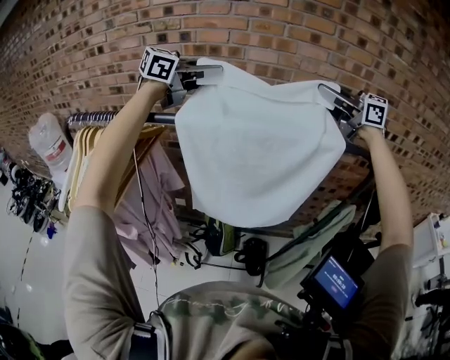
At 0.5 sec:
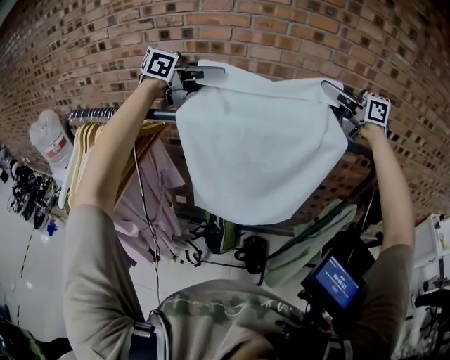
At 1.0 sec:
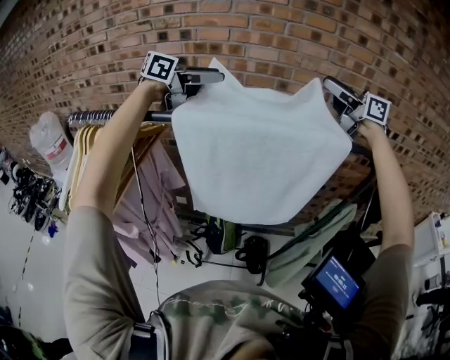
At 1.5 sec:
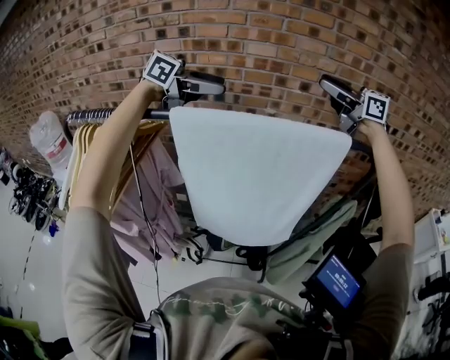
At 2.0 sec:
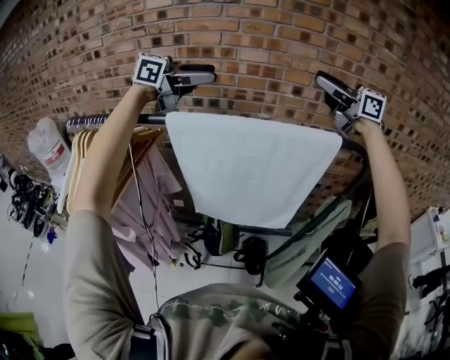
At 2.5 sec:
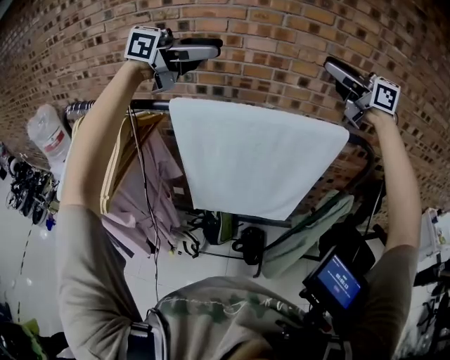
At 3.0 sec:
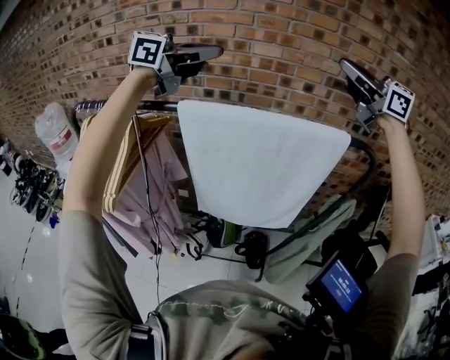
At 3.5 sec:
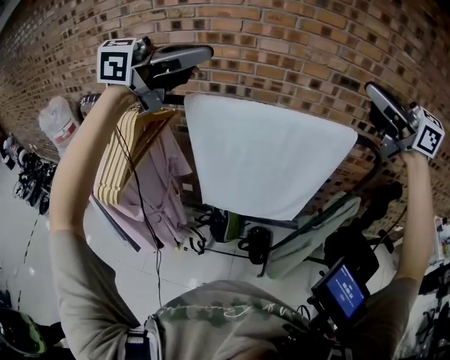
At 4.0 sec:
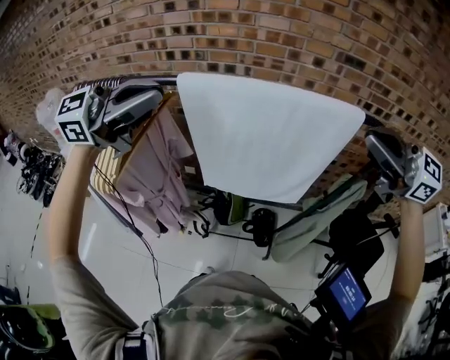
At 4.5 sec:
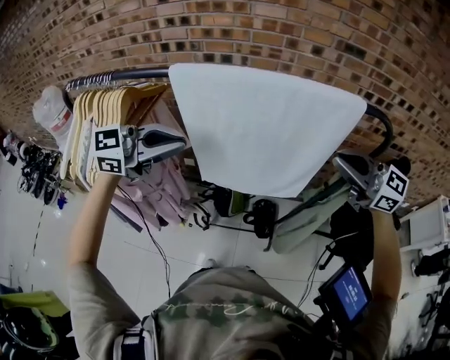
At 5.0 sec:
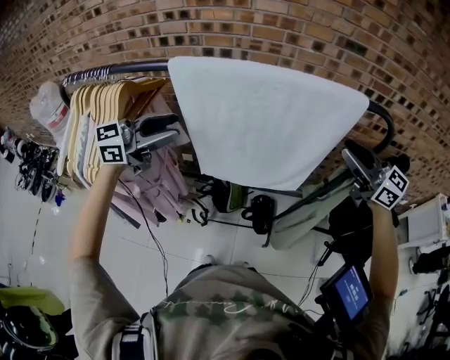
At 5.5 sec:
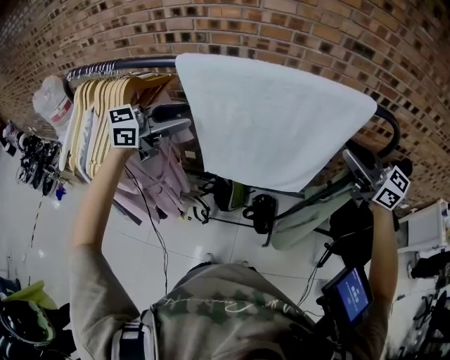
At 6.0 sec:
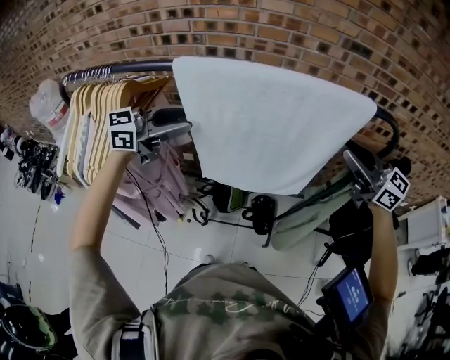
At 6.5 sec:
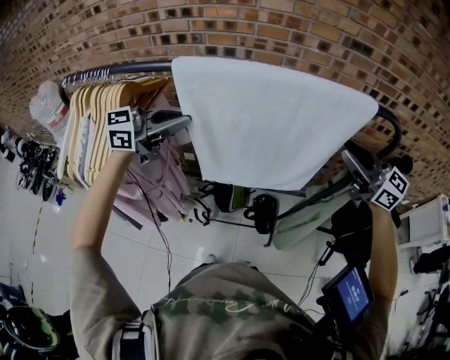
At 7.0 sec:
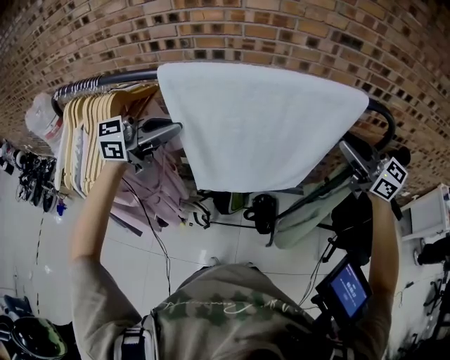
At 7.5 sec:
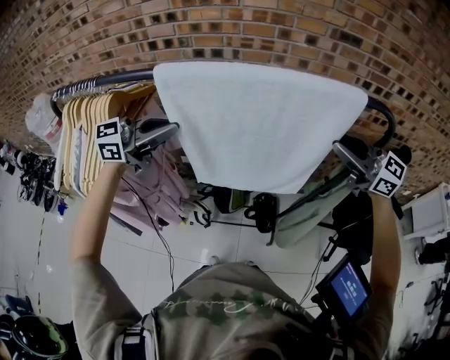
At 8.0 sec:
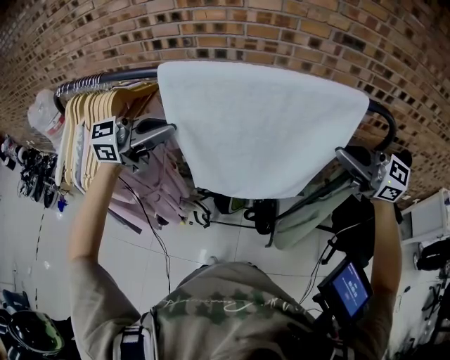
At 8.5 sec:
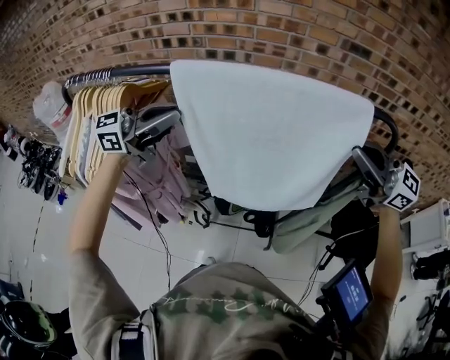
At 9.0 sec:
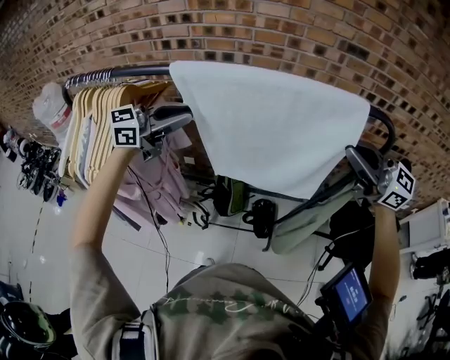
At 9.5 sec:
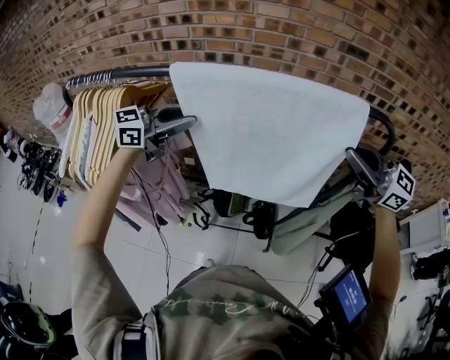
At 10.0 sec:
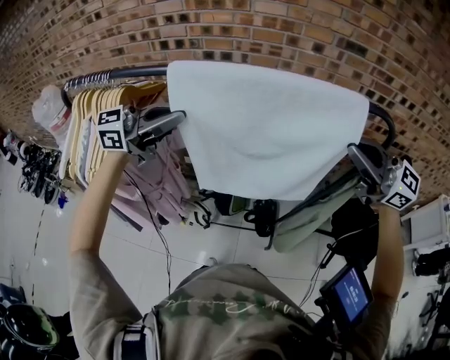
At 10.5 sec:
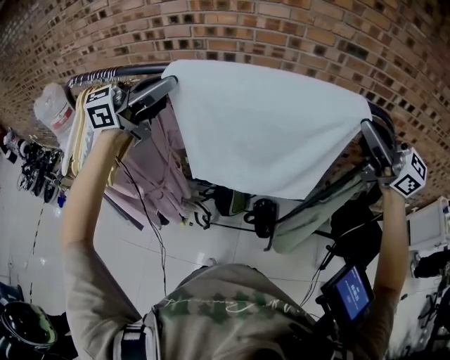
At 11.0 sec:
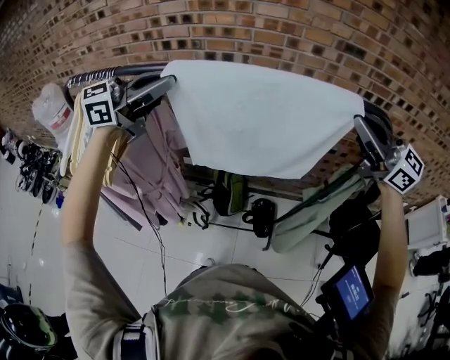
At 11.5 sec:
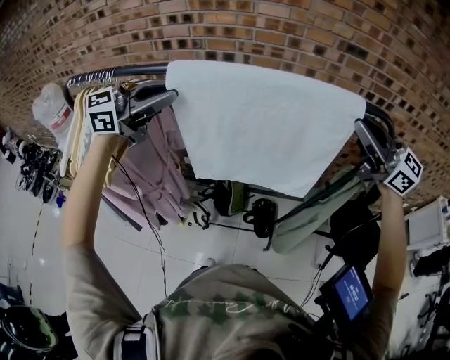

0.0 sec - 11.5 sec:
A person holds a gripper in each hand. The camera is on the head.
0.0 sec - 2.0 sec: The right gripper opens up; the left gripper opens its fingers.
2.0 sec - 4.0 sec: The left gripper goes upward and returns, about 5 cm each way, and closes, while the right gripper shifts by roughly 25 cm, and closes its fingers.
4.0 sec - 6.0 sec: The grippers both shift downward by roughly 15 cm. The left gripper opens its fingers.
6.0 sec - 7.5 sec: The left gripper closes.
7.5 sec - 9.5 sec: The right gripper changes place by roughly 5 cm.
9.5 sec - 11.5 sec: The left gripper is displaced upward by approximately 10 cm, while the right gripper ends up approximately 5 cm from where it was.

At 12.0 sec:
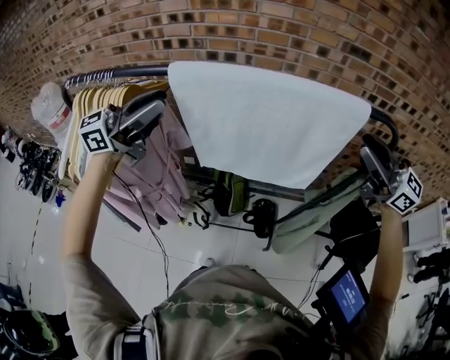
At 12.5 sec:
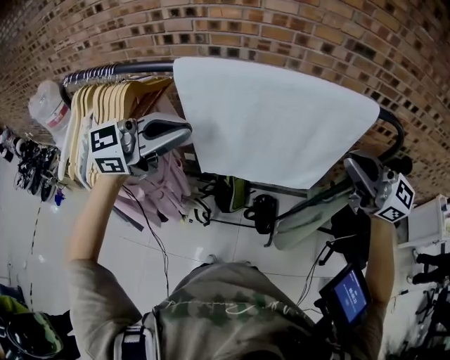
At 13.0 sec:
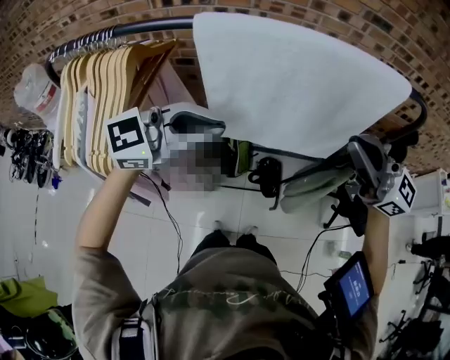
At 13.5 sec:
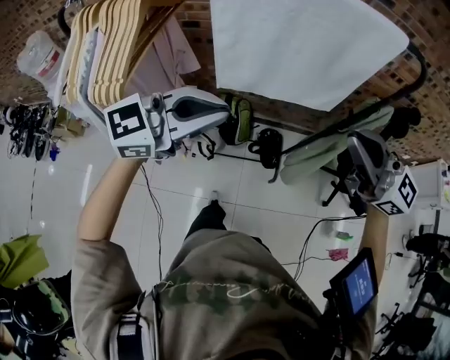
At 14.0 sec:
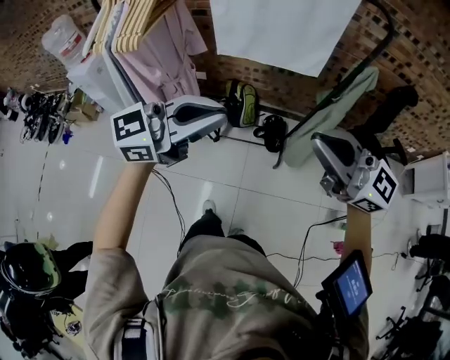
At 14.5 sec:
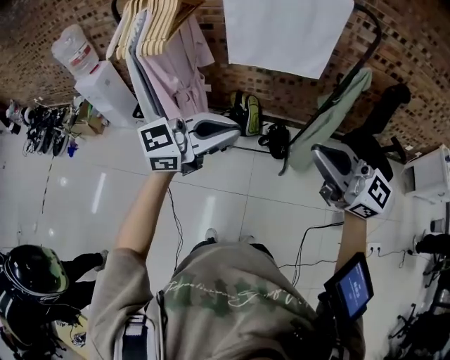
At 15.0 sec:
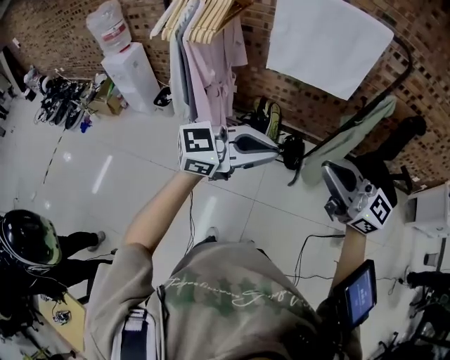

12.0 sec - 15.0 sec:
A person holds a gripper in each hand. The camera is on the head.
12.0 sec - 13.5 sec: The left gripper changes place by some 25 cm; the right gripper shifts by roughly 25 cm, and closes.
13.5 sec - 15.0 sec: The right gripper ends up roughly 30 cm from where it was. Meanwhile the left gripper changes place by approximately 30 cm.

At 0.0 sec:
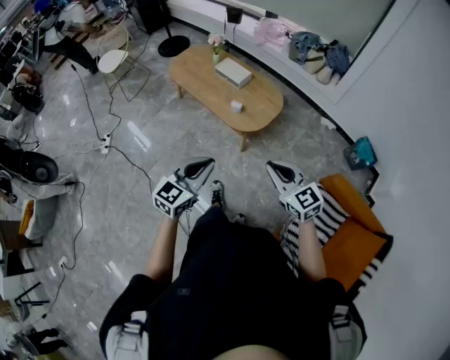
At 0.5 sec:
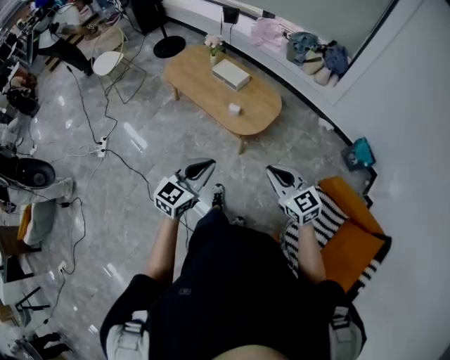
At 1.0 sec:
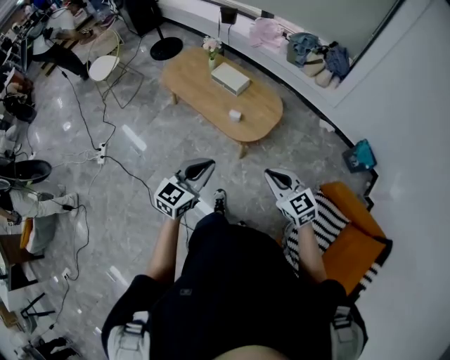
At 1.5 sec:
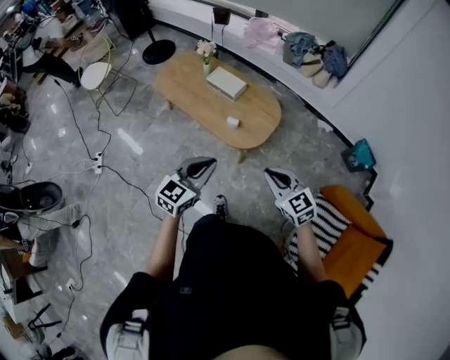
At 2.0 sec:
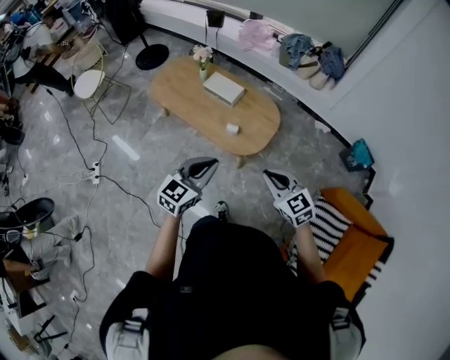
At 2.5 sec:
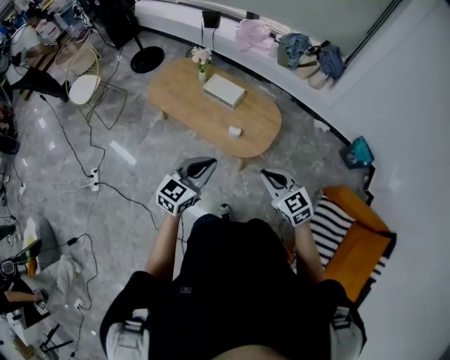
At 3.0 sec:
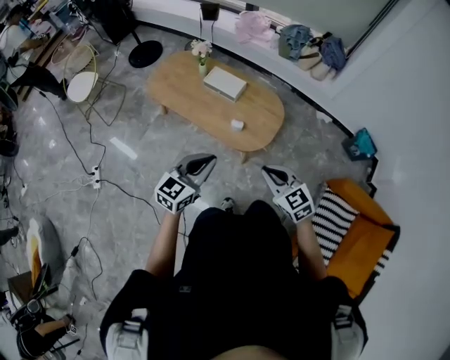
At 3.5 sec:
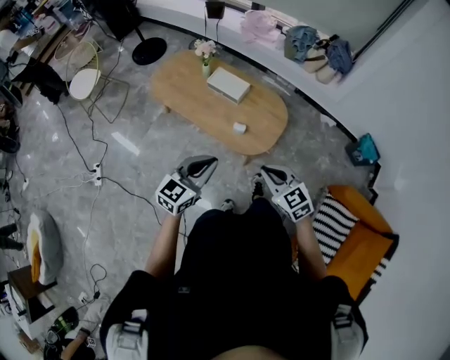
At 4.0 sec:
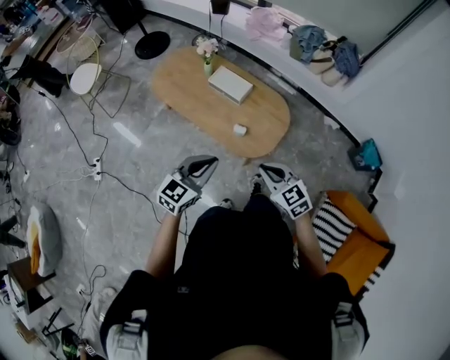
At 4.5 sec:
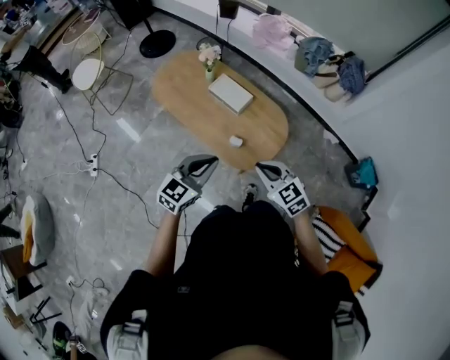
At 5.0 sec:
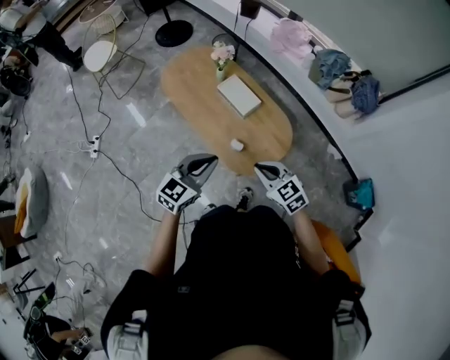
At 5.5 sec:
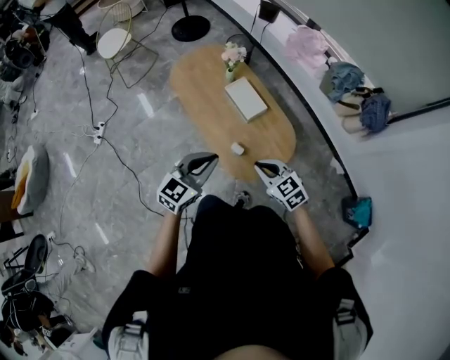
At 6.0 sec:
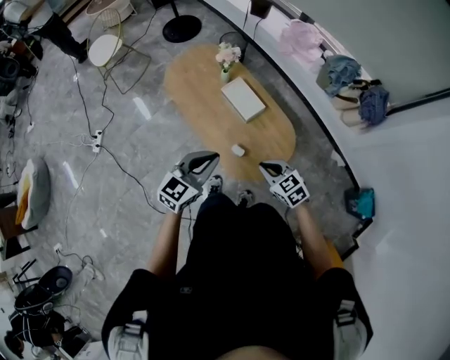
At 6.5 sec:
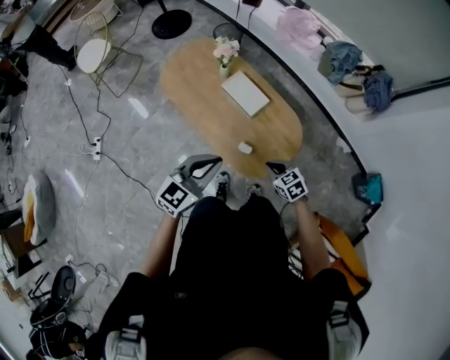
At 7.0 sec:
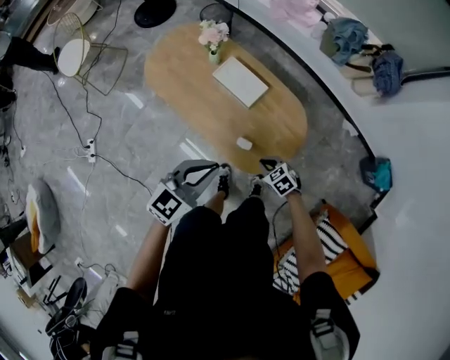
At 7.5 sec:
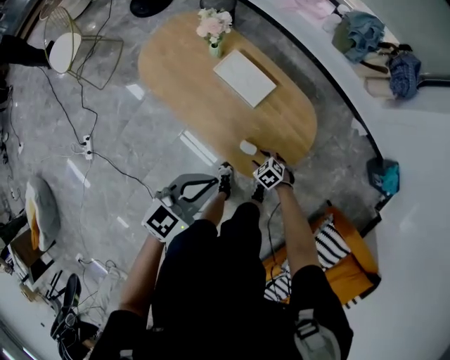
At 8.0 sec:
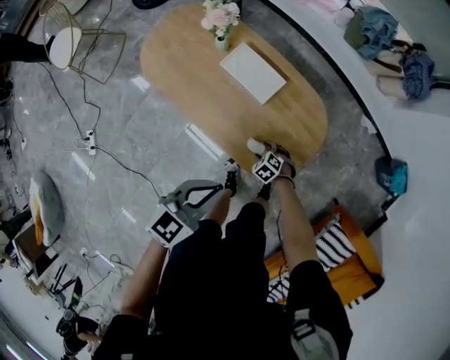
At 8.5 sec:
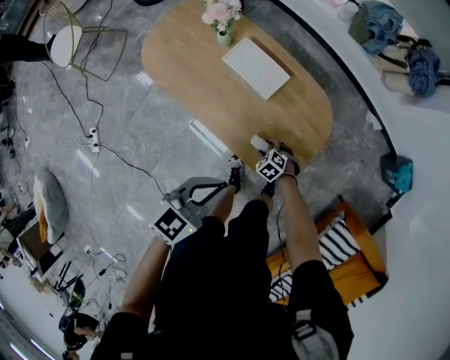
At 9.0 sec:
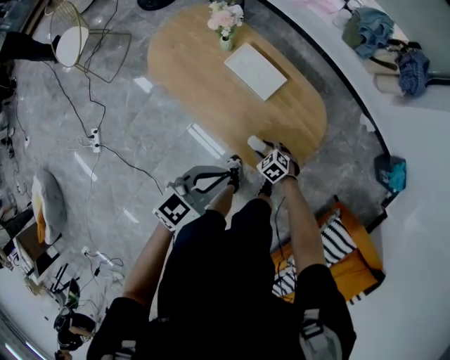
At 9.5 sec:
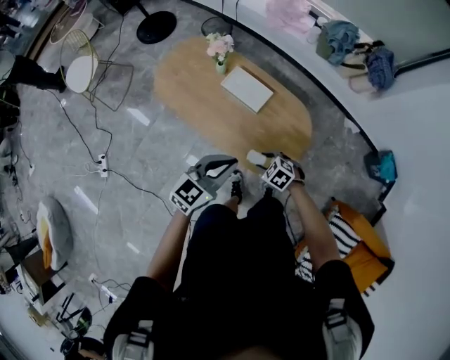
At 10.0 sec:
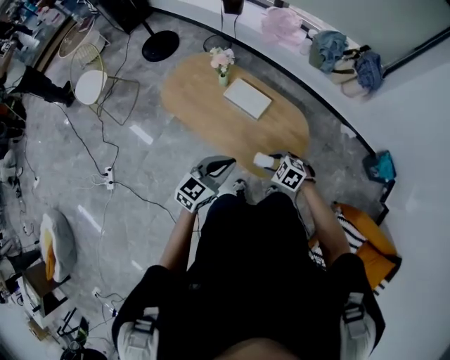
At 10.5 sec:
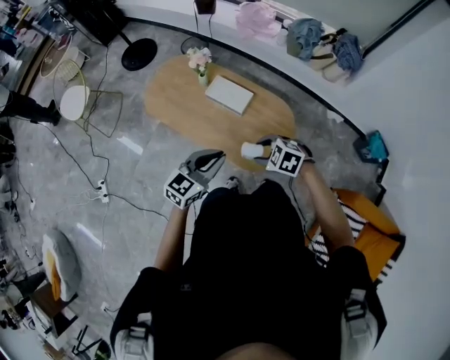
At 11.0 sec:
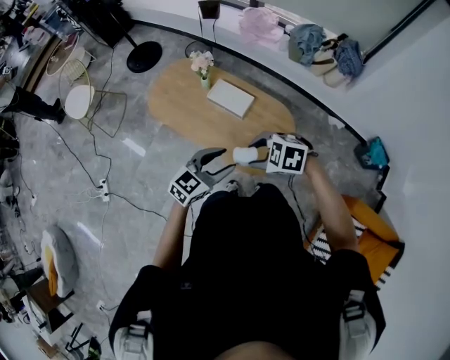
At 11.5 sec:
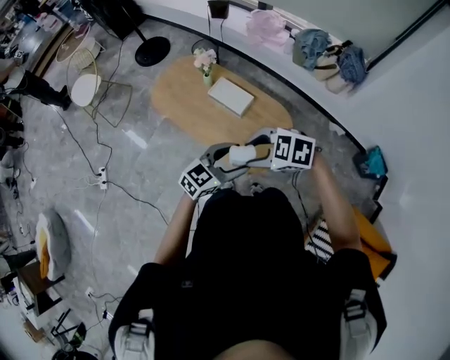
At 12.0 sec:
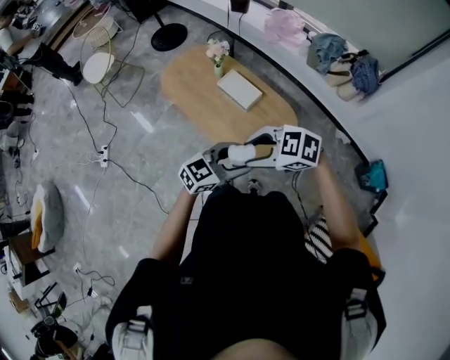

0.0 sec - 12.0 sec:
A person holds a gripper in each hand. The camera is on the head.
0.0 sec - 2.0 sec: The right gripper heads forward and to the left, covering roughly 20 cm. Meanwhile the left gripper travels forward by approximately 20 cm.
2.0 sec - 4.0 sec: The right gripper heads forward and downward, covering some 10 cm. The left gripper heads forward, covering some 10 cm.
4.0 sec - 6.0 sec: The left gripper heads forward, covering some 15 cm. The right gripper travels forward and downward by roughly 20 cm, and turns by roughly 20 degrees.
6.0 sec - 8.0 sec: The right gripper heads downward, covering approximately 40 cm, points its fingers some 30 degrees further downward, and opens its fingers; the left gripper heads downward, covering about 15 cm, and swivels approximately 20 degrees.
8.0 sec - 10.0 sec: The right gripper goes roughly 35 cm upward, while the left gripper goes about 10 cm upward.
10.0 sec - 12.0 sec: The right gripper goes roughly 25 cm upward, and swivels approximately 40 degrees, while the left gripper shifts by roughly 15 cm, and opens up.
